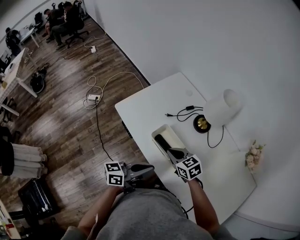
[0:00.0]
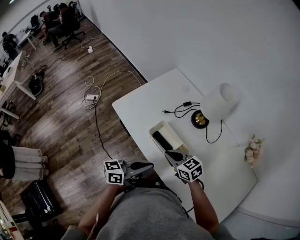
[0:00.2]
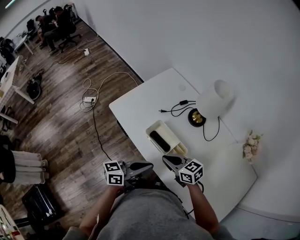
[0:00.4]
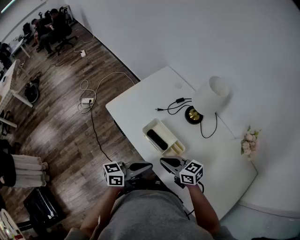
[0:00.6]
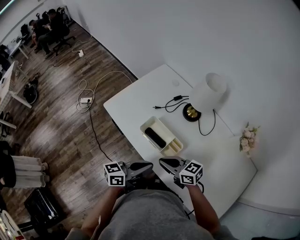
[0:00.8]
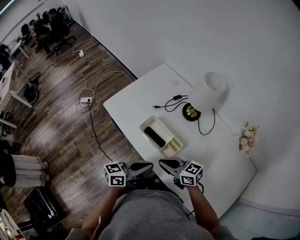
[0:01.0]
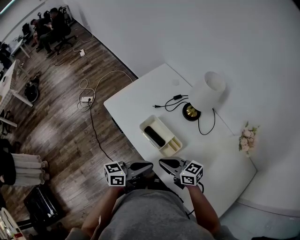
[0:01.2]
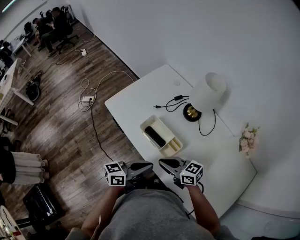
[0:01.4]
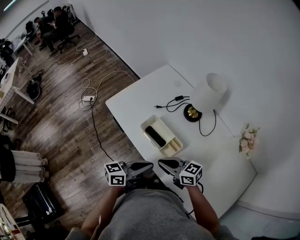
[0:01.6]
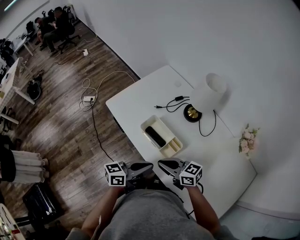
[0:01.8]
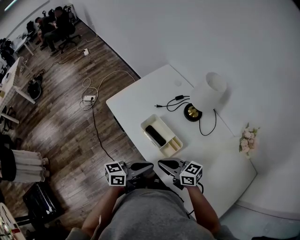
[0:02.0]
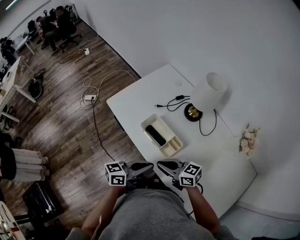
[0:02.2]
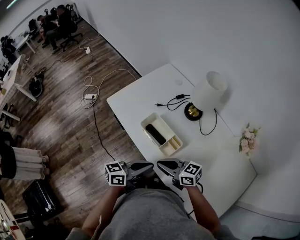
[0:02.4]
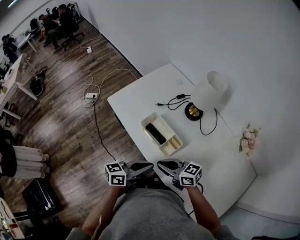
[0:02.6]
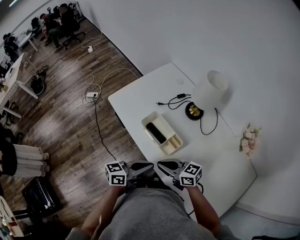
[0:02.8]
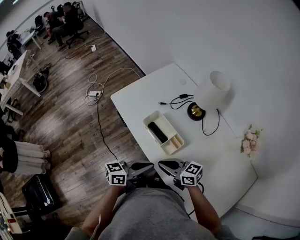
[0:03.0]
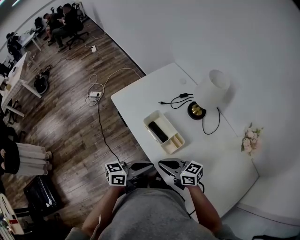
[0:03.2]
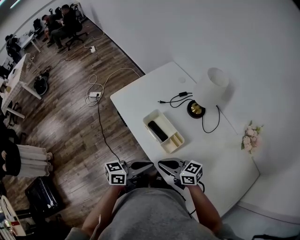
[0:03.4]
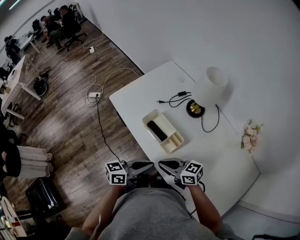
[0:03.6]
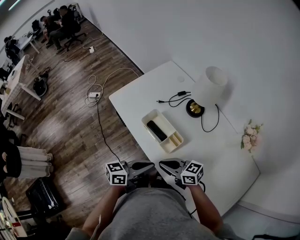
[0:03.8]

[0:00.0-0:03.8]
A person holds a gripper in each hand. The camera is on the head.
0:00.0 to 0:01.2: The left gripper moves about 5 cm, while the right gripper changes place by roughly 10 cm, and changes its angle by some 30 degrees.
0:01.2 to 0:03.8: The grippers make only small movements.

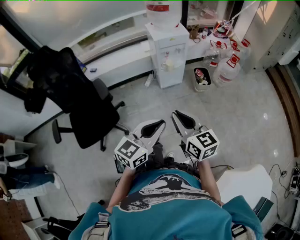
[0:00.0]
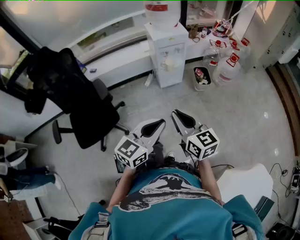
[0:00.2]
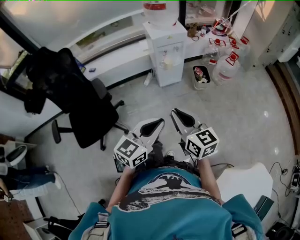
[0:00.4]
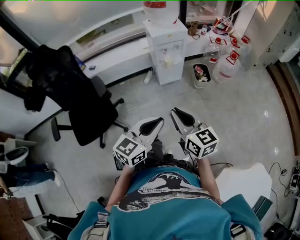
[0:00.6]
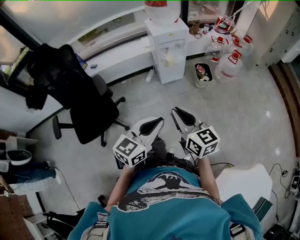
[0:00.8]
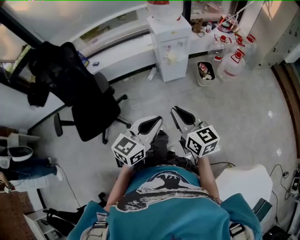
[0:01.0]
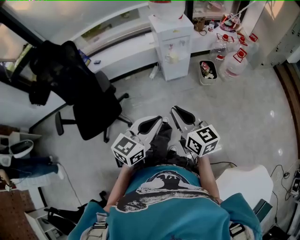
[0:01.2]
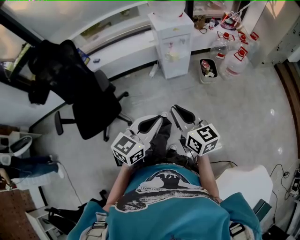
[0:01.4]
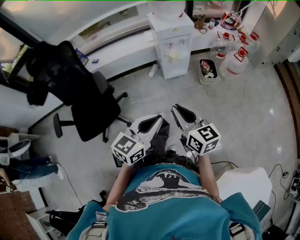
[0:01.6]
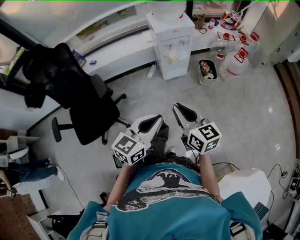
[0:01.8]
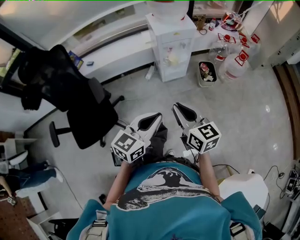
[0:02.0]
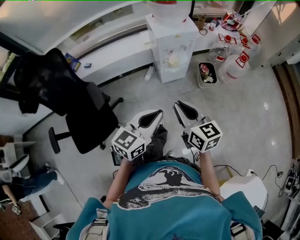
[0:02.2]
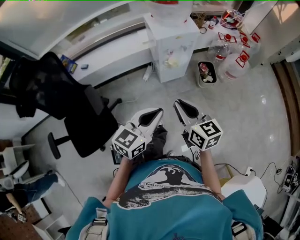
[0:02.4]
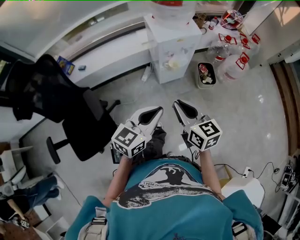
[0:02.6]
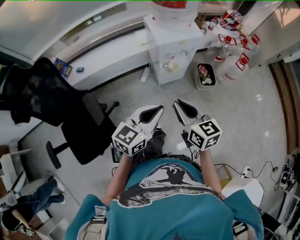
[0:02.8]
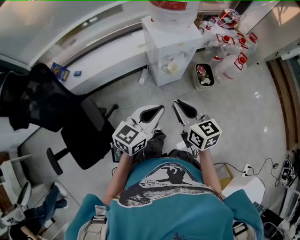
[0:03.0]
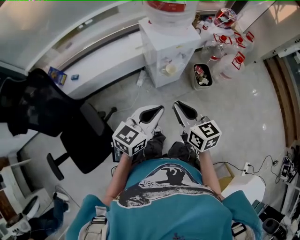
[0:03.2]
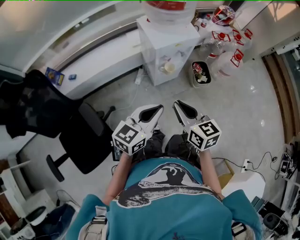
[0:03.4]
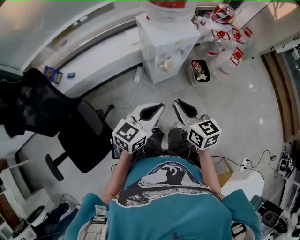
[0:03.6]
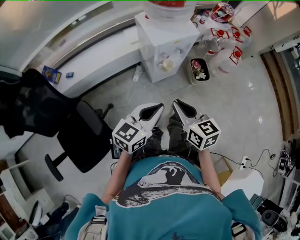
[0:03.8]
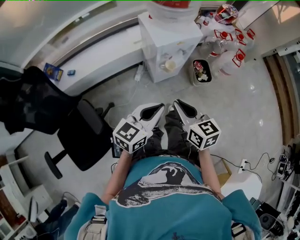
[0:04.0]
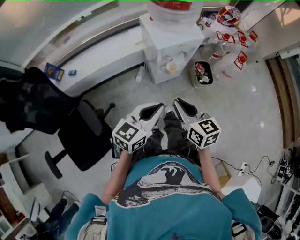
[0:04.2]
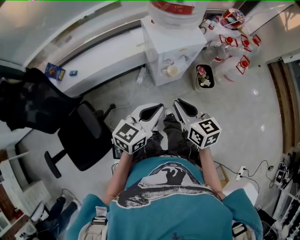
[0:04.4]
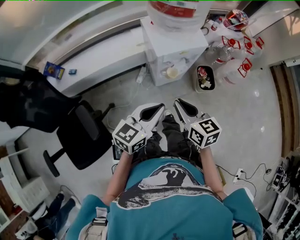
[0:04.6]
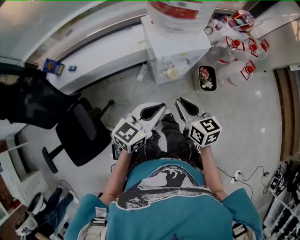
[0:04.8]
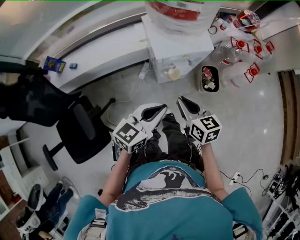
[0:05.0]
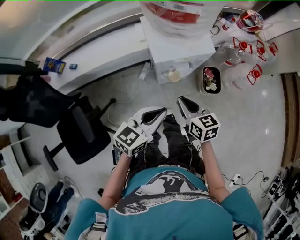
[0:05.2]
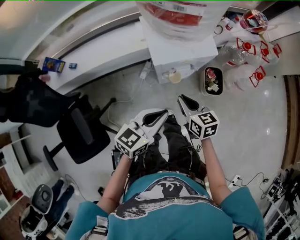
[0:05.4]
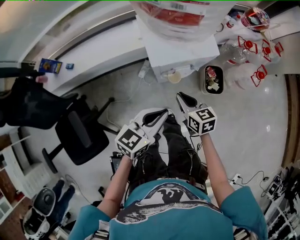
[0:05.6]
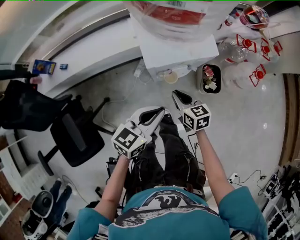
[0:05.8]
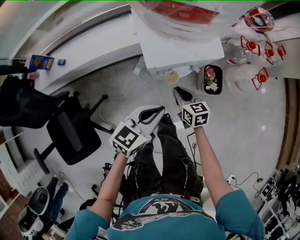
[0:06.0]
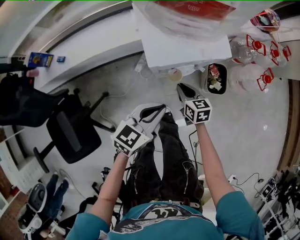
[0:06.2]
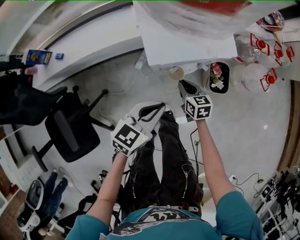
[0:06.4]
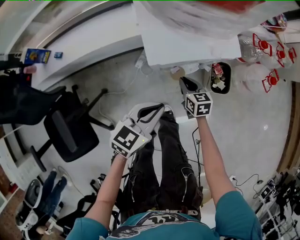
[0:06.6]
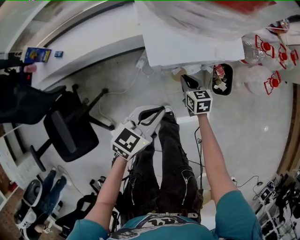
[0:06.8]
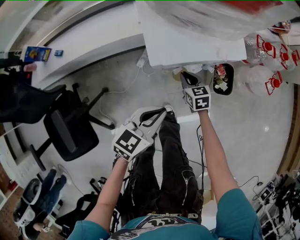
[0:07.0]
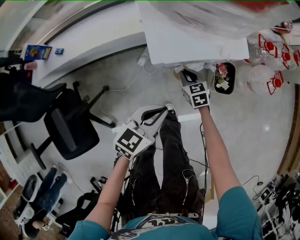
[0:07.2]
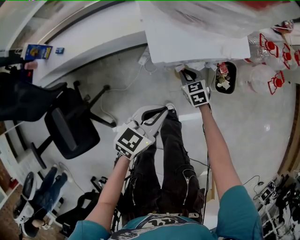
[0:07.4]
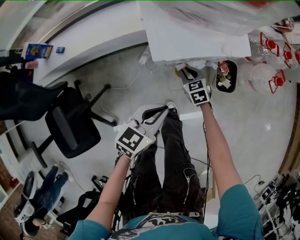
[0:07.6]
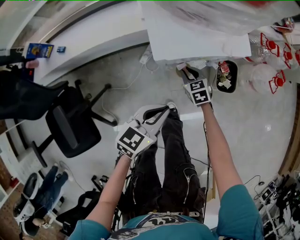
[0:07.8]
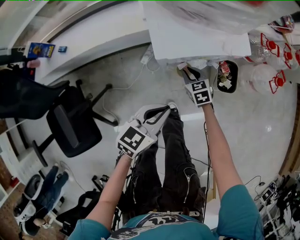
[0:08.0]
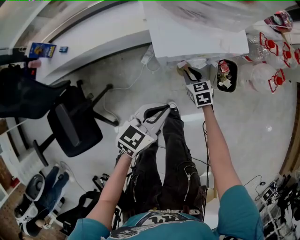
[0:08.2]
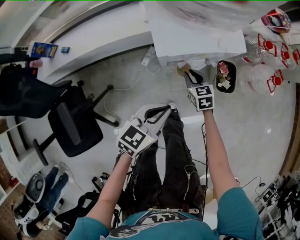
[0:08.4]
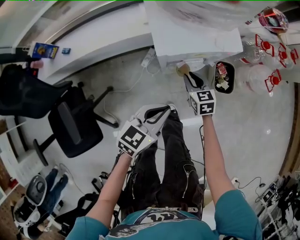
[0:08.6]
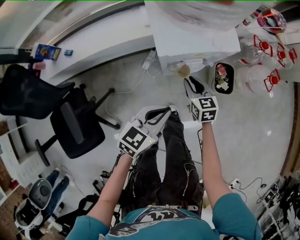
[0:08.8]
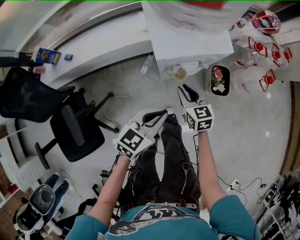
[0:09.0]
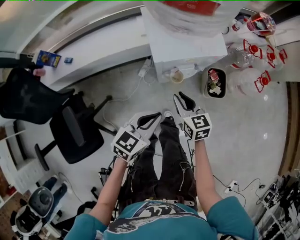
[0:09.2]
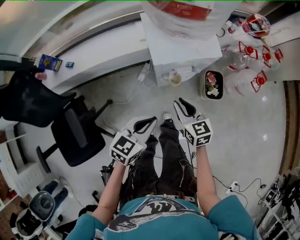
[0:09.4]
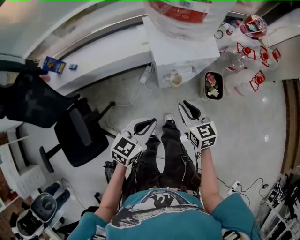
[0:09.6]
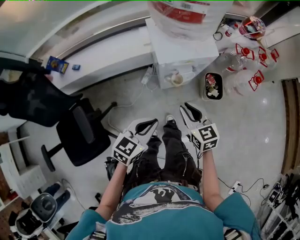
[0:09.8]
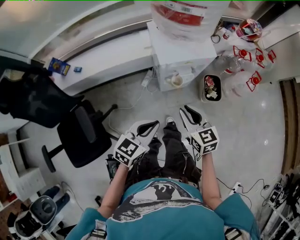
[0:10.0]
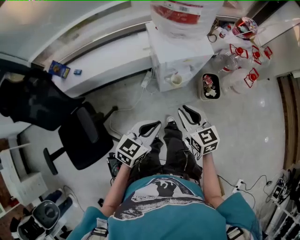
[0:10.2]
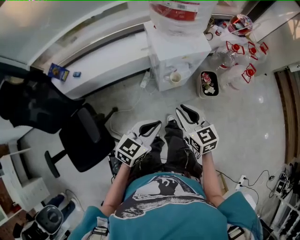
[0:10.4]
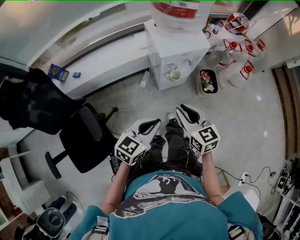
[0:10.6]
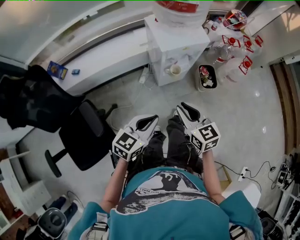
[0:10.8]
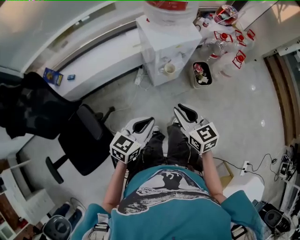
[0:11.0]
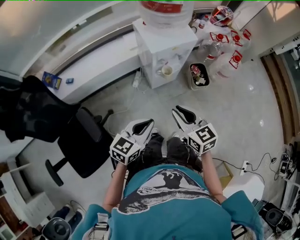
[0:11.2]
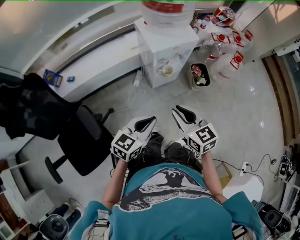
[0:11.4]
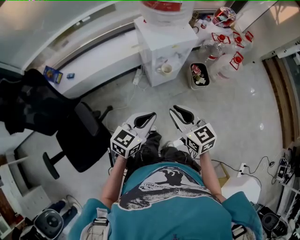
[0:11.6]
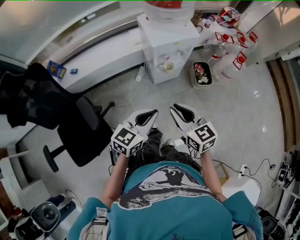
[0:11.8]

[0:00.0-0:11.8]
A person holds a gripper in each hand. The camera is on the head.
0:00.0 to 0:01.4: The grippers make only small movements.
0:01.4 to 0:03.0: The two grippers go roughly 30 cm forward.
0:03.0 to 0:04.4: Both grippers move forward, some 5 cm.
0:04.4 to 0:06.0: The left gripper goes roughly 20 cm forward, downward and to the right, while the right gripper travels downward and forward by about 30 cm.
0:06.0 to 0:07.4: The right gripper goes some 15 cm downward and forward, and turns by about 20 degrees. Meanwhile the left gripper moves downward, some 10 cm.
0:07.4 to 0:08.8: The right gripper is displaced upward and backward by approximately 10 cm. Meanwhile the left gripper shifts by about 5 cm.
0:08.8 to 0:10.4: The right gripper is displaced upward and backward by about 30 cm, while the left gripper moves backward and upward, some 15 cm.
0:10.4 to 0:11.8: The right gripper moves backward, approximately 10 cm. Meanwhile the left gripper travels backward by about 5 cm.

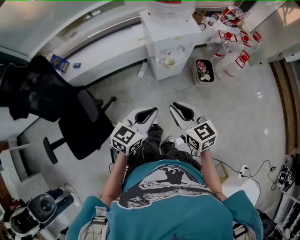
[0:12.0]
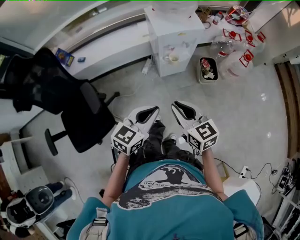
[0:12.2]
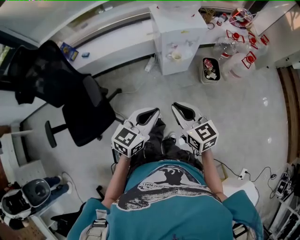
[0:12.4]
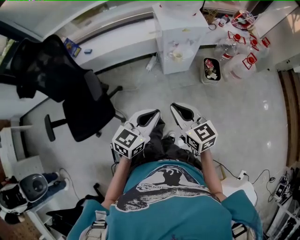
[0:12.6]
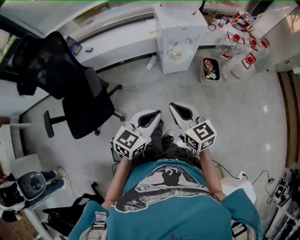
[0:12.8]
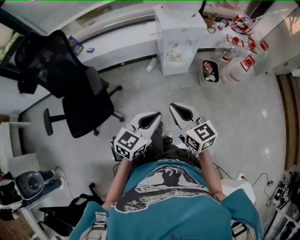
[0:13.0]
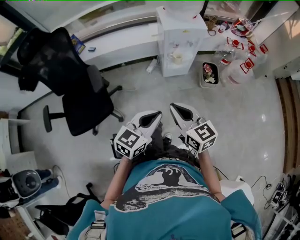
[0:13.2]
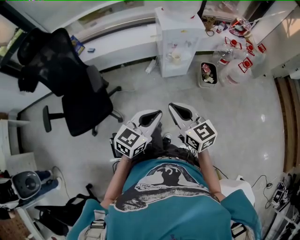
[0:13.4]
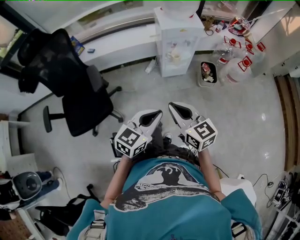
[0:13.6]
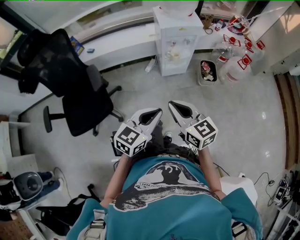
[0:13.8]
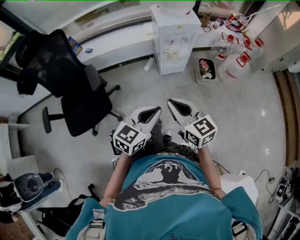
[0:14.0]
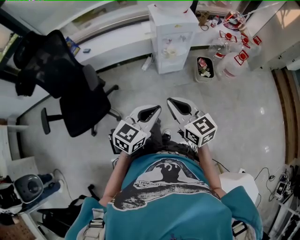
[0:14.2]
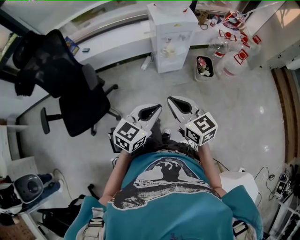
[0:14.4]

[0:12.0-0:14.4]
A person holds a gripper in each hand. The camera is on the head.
0:12.0 to 0:13.2: The two grippers go about 15 cm backward.
0:13.2 to 0:14.4: The grippers stay close to where they were, moving slightly.

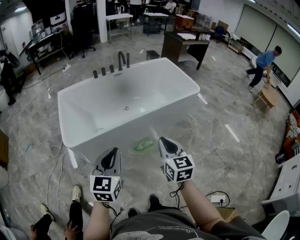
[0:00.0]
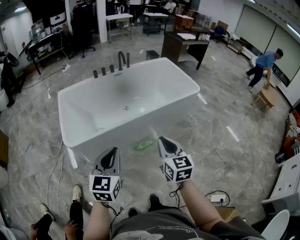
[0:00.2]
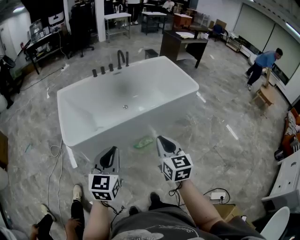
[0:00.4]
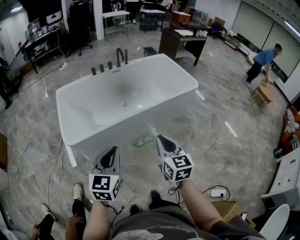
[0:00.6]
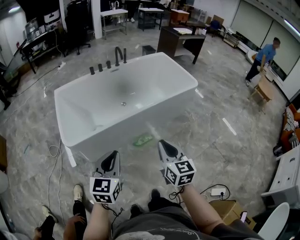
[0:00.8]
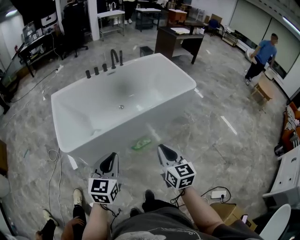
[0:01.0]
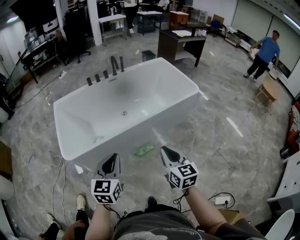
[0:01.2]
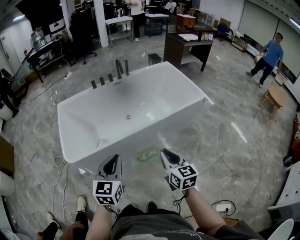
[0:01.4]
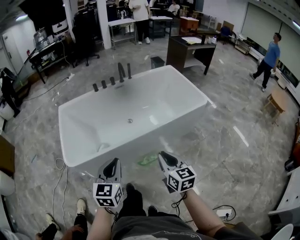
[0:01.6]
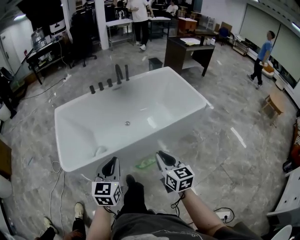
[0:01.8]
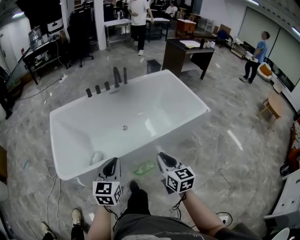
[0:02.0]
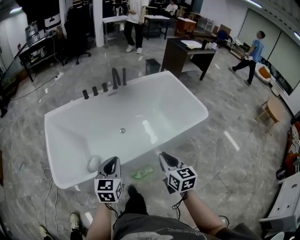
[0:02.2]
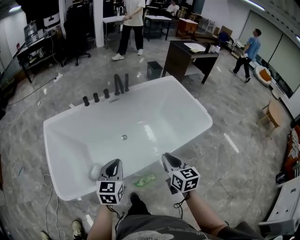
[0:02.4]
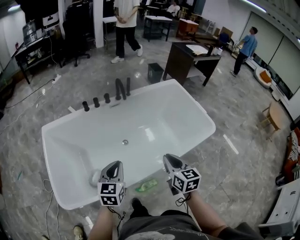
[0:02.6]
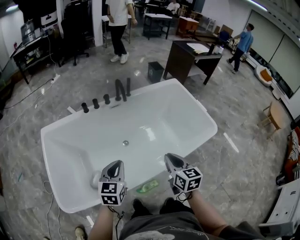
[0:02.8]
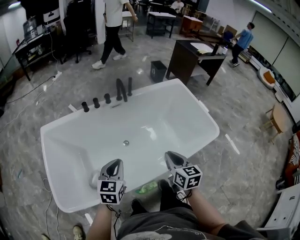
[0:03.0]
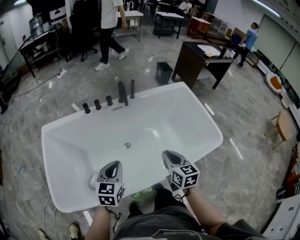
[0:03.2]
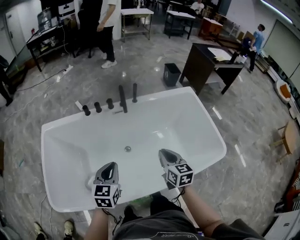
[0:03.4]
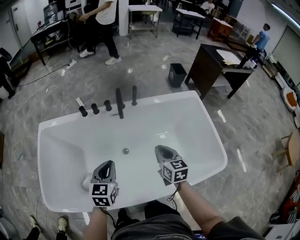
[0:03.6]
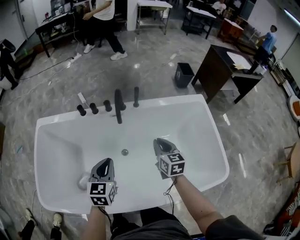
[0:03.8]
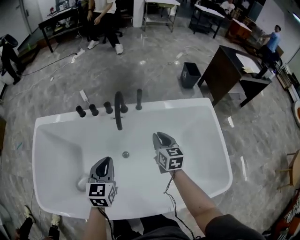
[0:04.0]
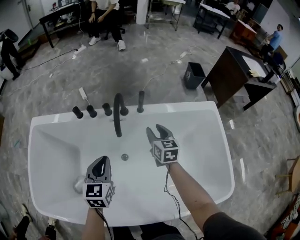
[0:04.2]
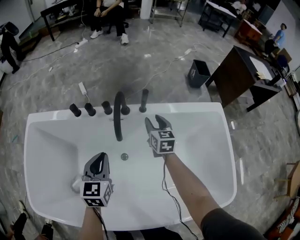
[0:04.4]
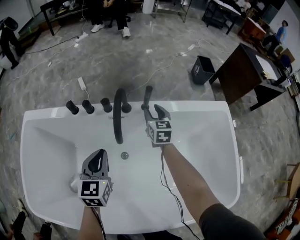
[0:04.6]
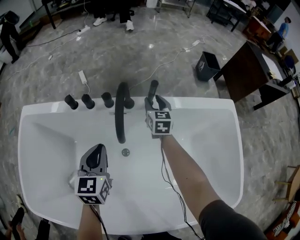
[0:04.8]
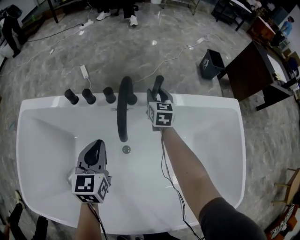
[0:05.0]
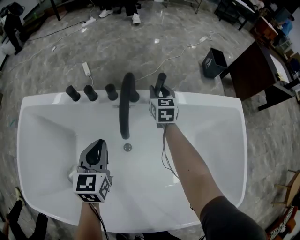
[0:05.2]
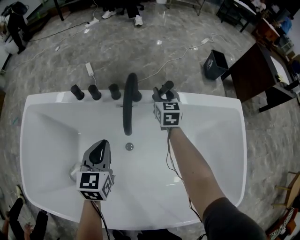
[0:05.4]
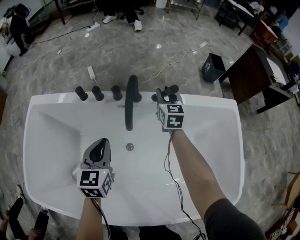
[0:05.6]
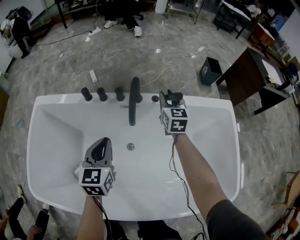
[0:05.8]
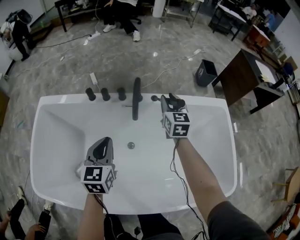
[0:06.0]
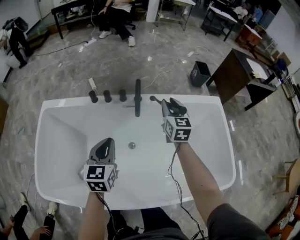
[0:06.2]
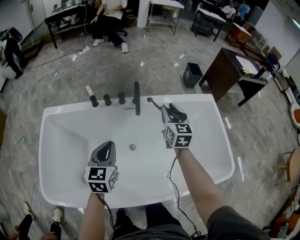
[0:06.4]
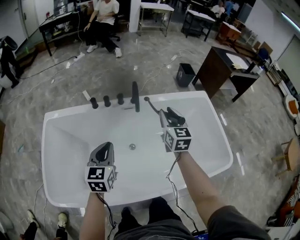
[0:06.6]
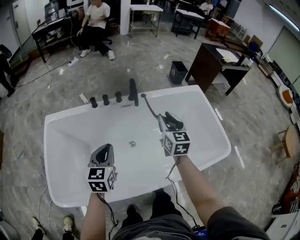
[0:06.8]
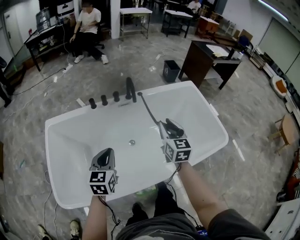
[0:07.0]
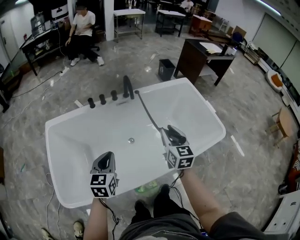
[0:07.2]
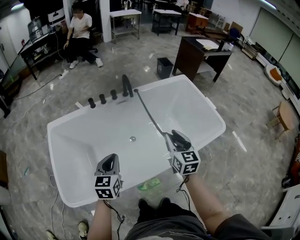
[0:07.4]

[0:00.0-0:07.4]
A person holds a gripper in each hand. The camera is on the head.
0:00.0 to 0:01.4: Both grippers move forward, about 10 cm.
0:01.4 to 0:03.0: The pair of grippers is taken forward, roughly 40 cm.
0:03.0 to 0:04.4: The left gripper shifts some 35 cm forward, and turns by some 30 degrees; the right gripper travels forward by approximately 60 cm, and opens up.
0:04.4 to 0:06.0: The right gripper heads upward, covering some 10 cm. The left gripper goes some 5 cm upward.
0:06.0 to 0:07.4: The left gripper moves backward, roughly 30 cm, and swivels about 20 degrees. The right gripper shifts about 50 cm backward.
